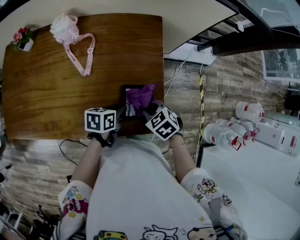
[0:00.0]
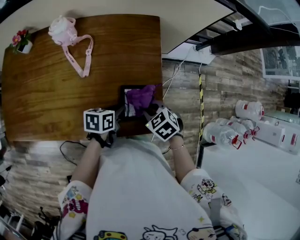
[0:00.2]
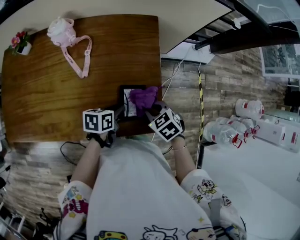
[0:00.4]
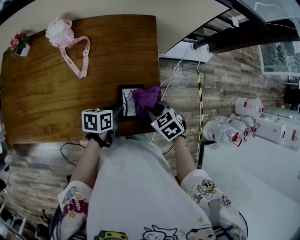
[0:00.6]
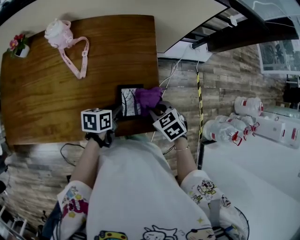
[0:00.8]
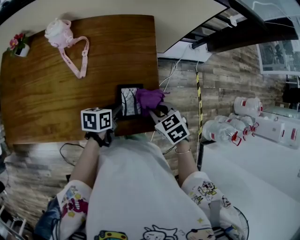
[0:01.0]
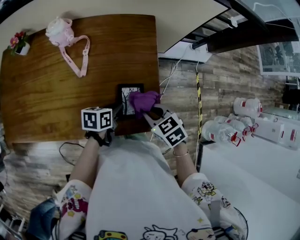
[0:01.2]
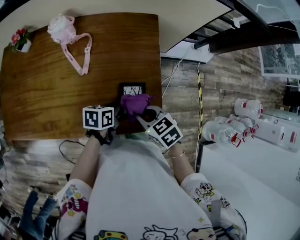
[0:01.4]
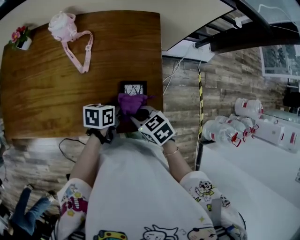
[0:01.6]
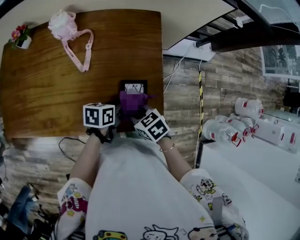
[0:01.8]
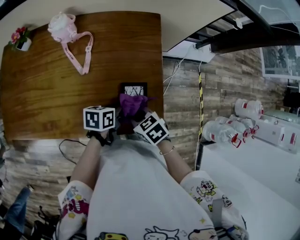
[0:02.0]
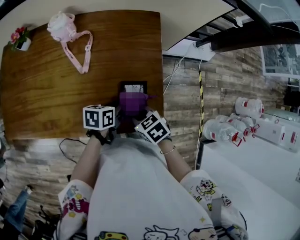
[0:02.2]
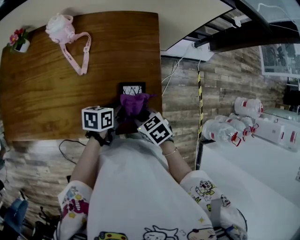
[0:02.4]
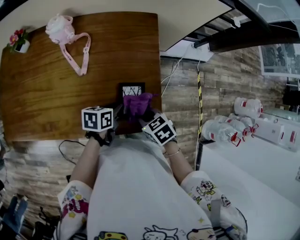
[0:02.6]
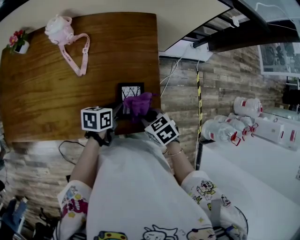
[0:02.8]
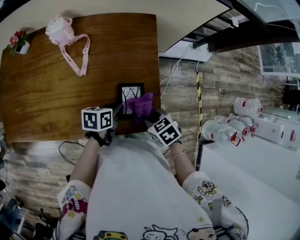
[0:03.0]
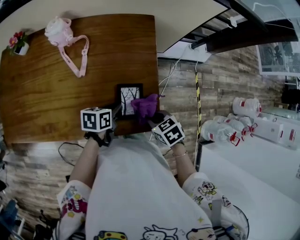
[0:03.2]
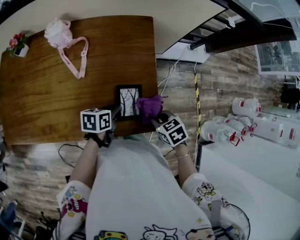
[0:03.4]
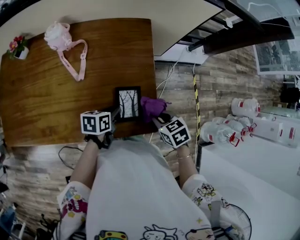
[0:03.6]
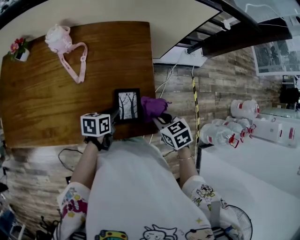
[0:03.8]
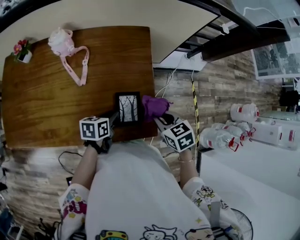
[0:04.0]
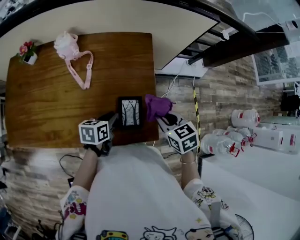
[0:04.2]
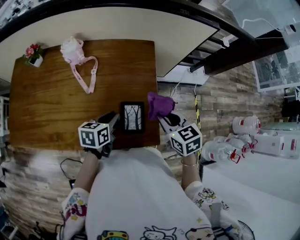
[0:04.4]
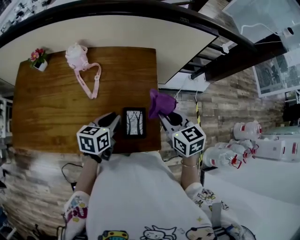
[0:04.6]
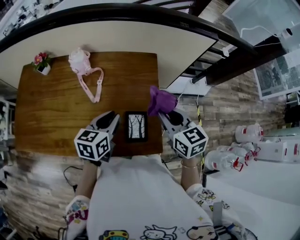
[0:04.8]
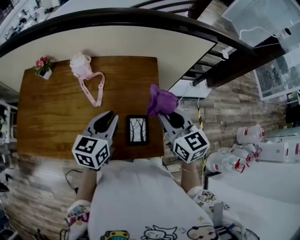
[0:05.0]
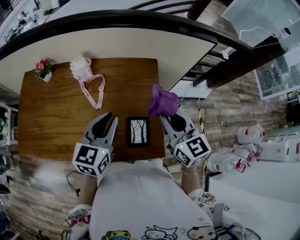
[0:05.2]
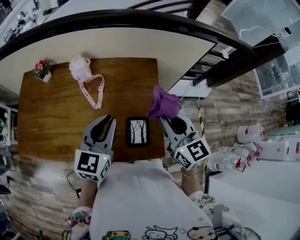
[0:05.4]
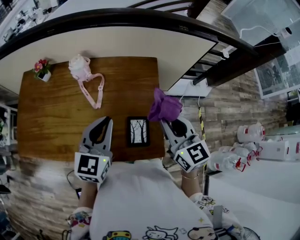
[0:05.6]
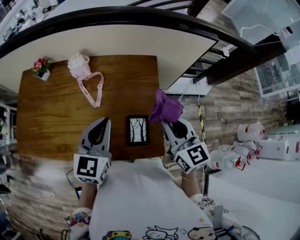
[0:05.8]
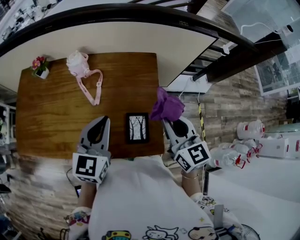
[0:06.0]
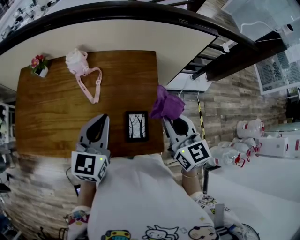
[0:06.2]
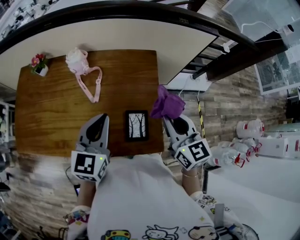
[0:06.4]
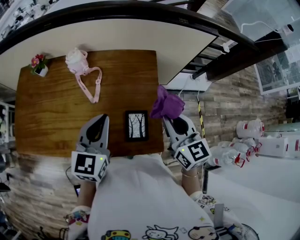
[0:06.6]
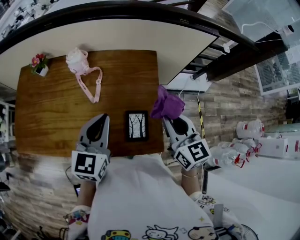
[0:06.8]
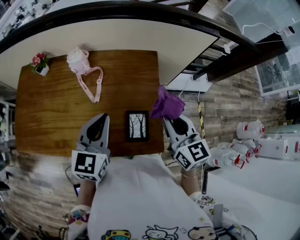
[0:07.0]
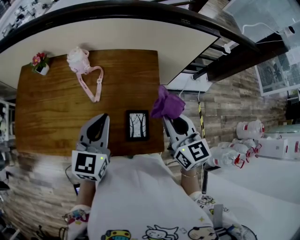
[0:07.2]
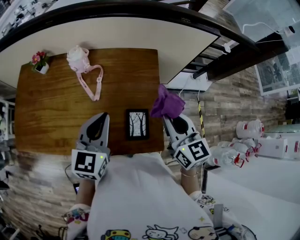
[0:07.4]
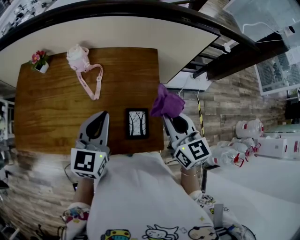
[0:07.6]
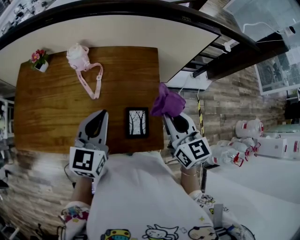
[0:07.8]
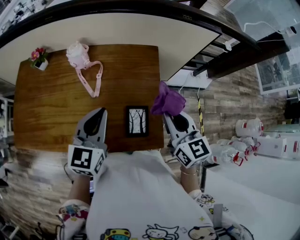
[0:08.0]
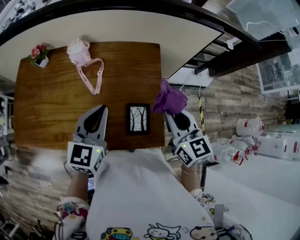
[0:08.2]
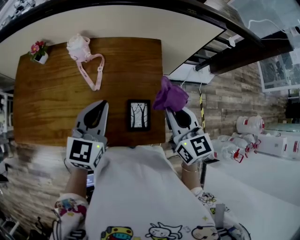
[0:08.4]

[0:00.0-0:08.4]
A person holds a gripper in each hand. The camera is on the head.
0:00.0 to 0:01.4: The right gripper changes place by some 5 cm.
0:01.4 to 0:02.8: The right gripper shifts by some 5 cm.
0:02.8 to 0:04.2: The right gripper is displaced upward, to the right and forward by some 15 cm.
0:04.2 to 0:05.6: Both grippers move upward, some 20 cm. The right gripper angles its fingers upward, by about 30 degrees; the left gripper rotates about 50 degrees.
0:05.6 to 0:07.0: There are only small adjustments of the grippers.
0:07.0 to 0:08.4: Both grippers stay put.

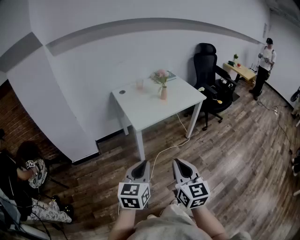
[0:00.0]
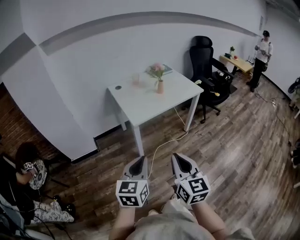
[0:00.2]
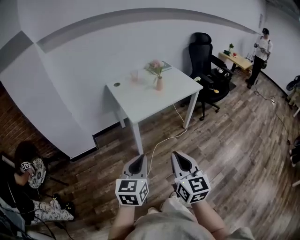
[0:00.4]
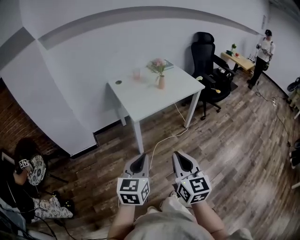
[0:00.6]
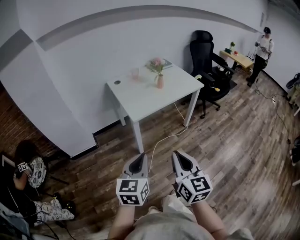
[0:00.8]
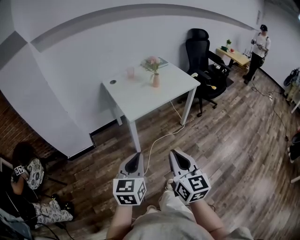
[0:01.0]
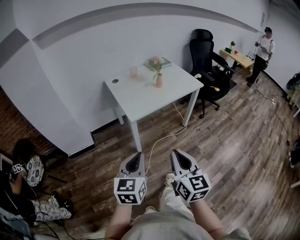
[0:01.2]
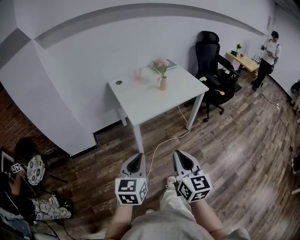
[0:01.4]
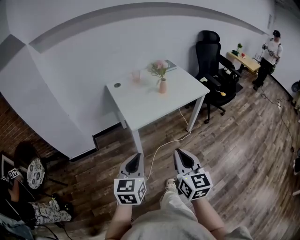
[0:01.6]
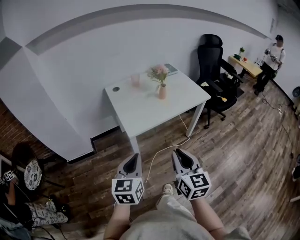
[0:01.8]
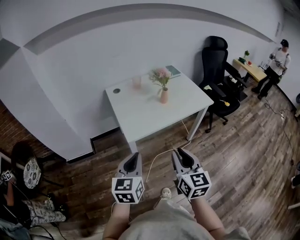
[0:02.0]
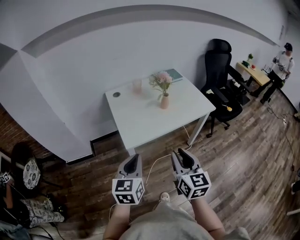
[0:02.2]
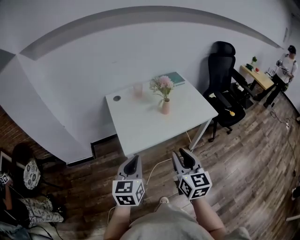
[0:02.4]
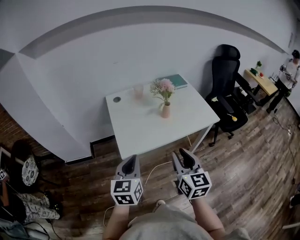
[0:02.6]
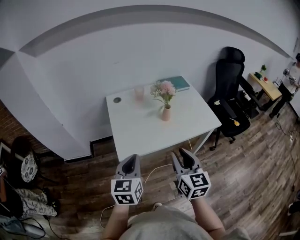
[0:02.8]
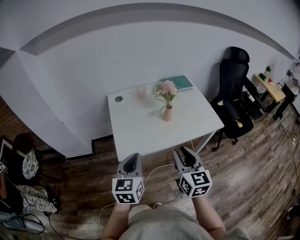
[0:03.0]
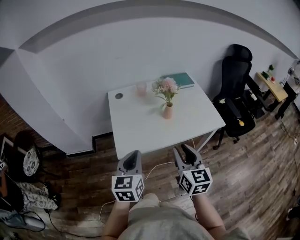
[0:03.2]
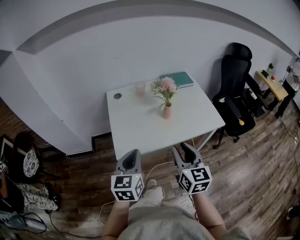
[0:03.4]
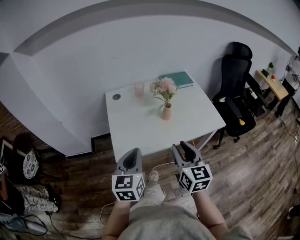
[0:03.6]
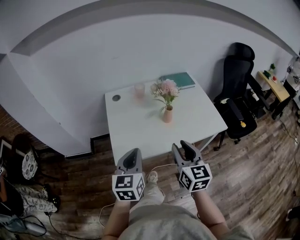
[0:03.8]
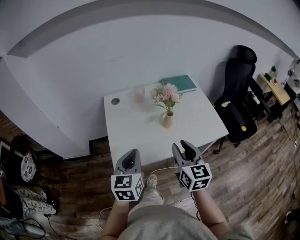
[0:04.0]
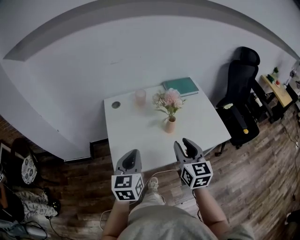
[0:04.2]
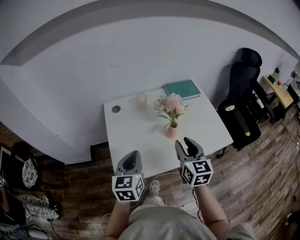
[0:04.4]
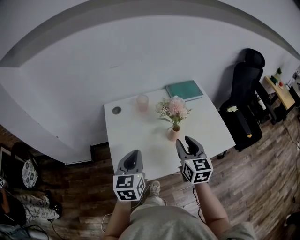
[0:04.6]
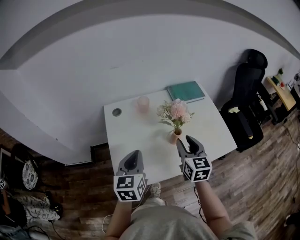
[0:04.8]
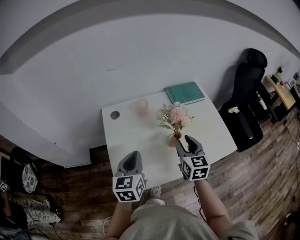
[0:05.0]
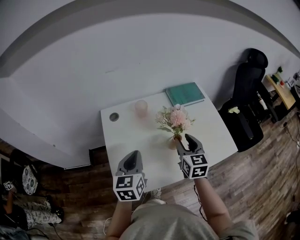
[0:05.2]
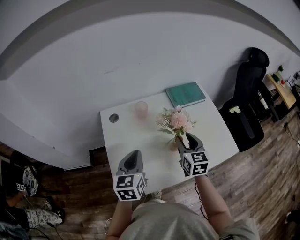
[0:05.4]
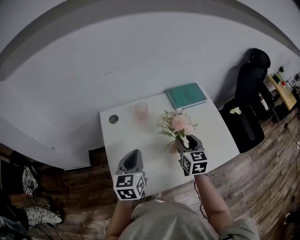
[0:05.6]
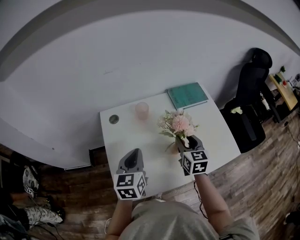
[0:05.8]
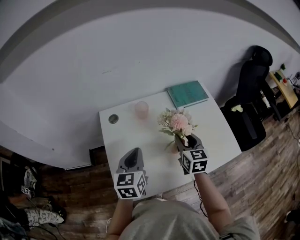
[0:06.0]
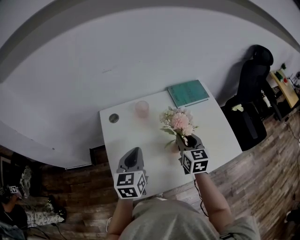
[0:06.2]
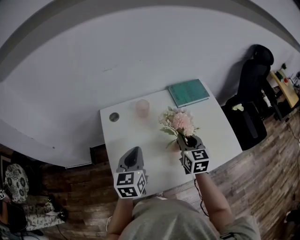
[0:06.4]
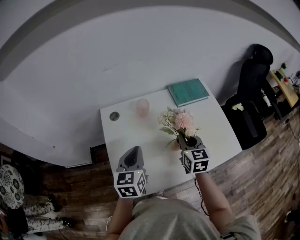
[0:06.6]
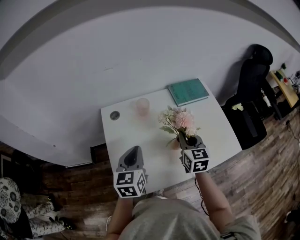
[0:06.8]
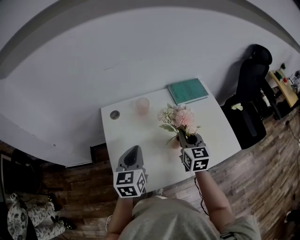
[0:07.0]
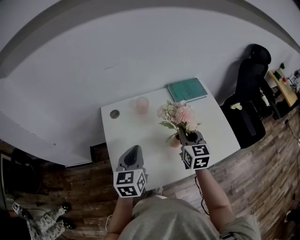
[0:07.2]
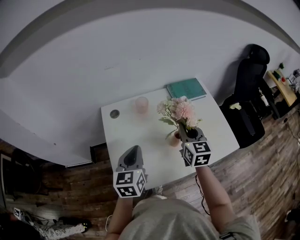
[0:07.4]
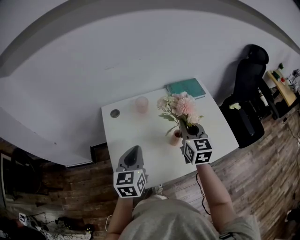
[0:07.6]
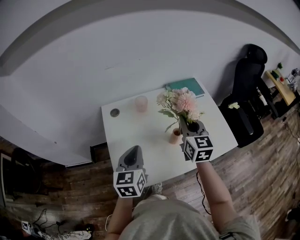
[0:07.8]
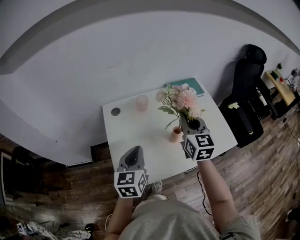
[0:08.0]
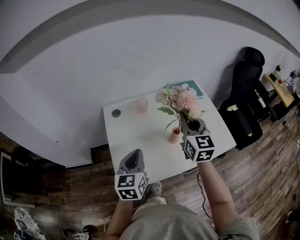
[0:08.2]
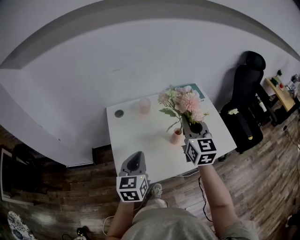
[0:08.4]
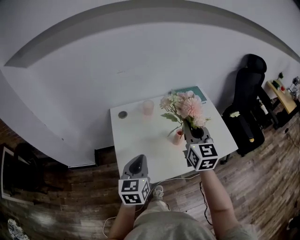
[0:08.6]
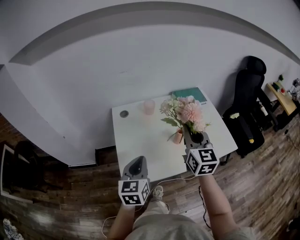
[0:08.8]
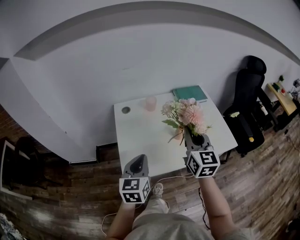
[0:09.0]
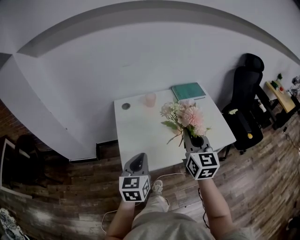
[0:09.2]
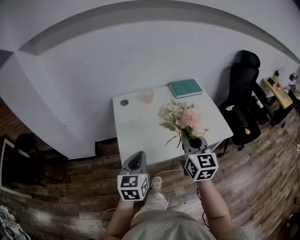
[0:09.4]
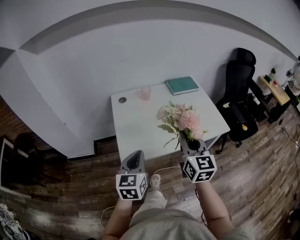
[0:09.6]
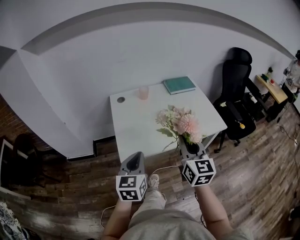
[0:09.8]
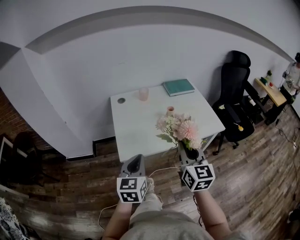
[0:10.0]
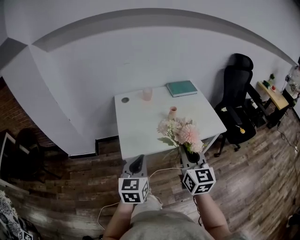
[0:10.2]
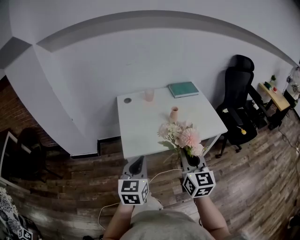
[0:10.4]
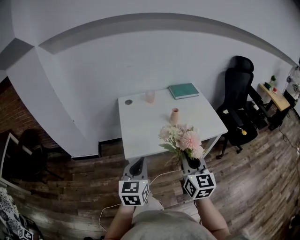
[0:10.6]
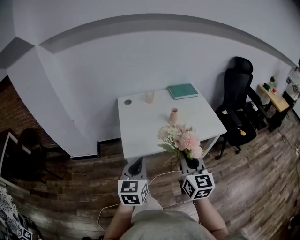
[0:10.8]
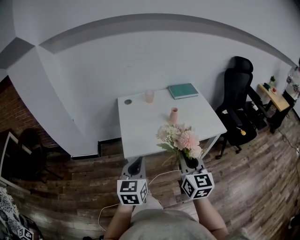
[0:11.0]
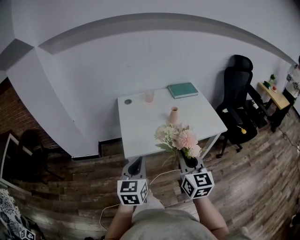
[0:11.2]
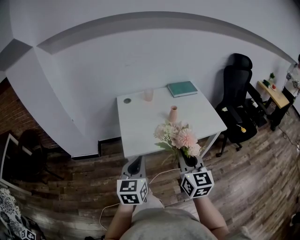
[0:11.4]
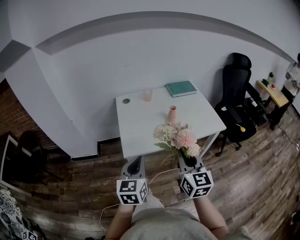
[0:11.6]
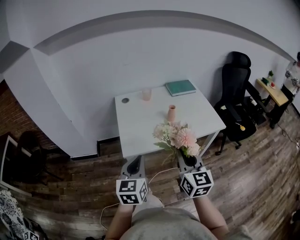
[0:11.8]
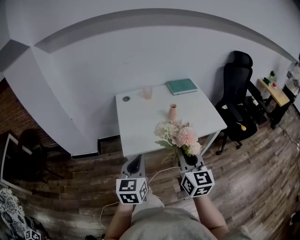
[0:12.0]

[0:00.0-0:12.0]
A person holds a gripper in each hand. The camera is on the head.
0:00.0 to 0:01.6: The two grippers go approximately 10 cm forward.
0:01.6 to 0:03.0: The grippers both shift forward and to the right by roughly 30 cm. The right gripper opens its fingers.
0:03.0 to 0:04.4: The two grippers go about 20 cm forward.
0:04.4 to 0:06.0: The right gripper heads forward and downward, covering about 20 cm, while the left gripper goes roughly 15 cm forward.
0:06.0 to 0:07.6: The left gripper ends up roughly 5 cm from where it was; the right gripper travels upward by approximately 10 cm, and closes its fingers.
0:07.6 to 0:09.0: The right gripper is displaced backward and upward by about 15 cm. Meanwhile the left gripper goes some 15 cm backward.
0:09.0 to 0:10.4: The grippers both shift backward by about 20 cm.
0:10.4 to 0:12.0: The two grippers keep their place.

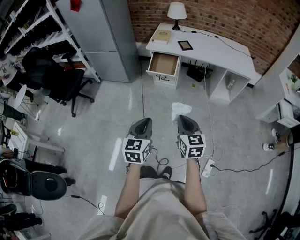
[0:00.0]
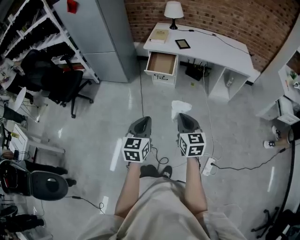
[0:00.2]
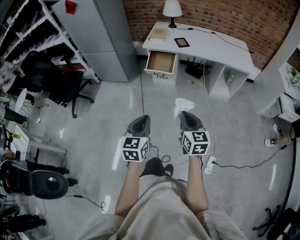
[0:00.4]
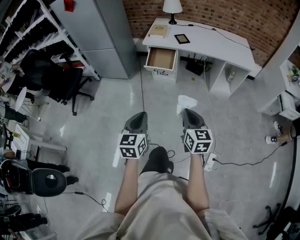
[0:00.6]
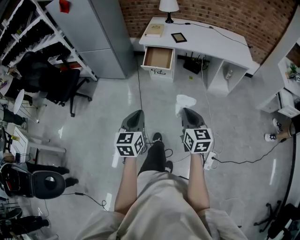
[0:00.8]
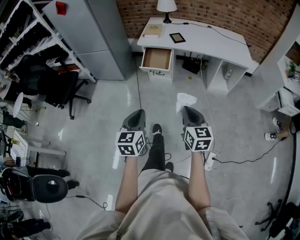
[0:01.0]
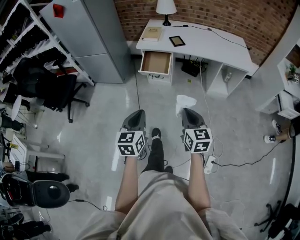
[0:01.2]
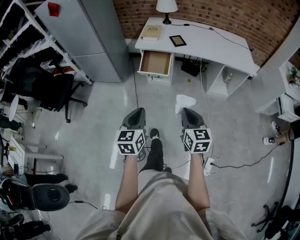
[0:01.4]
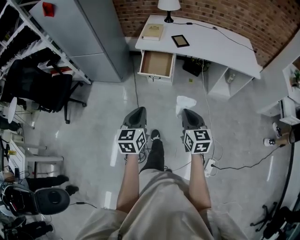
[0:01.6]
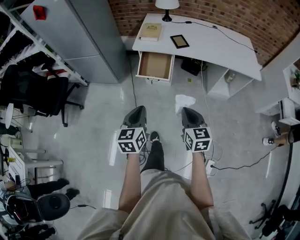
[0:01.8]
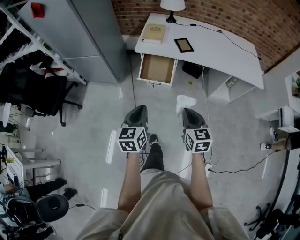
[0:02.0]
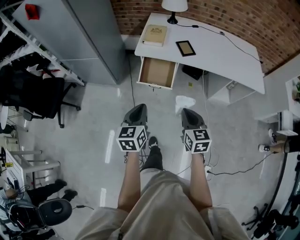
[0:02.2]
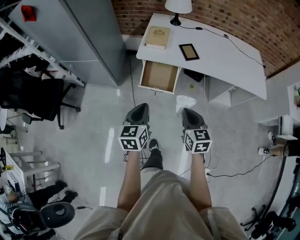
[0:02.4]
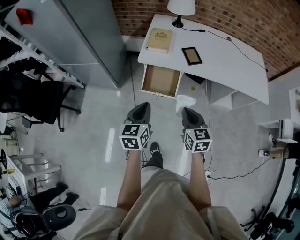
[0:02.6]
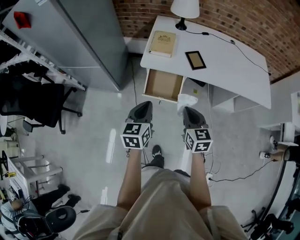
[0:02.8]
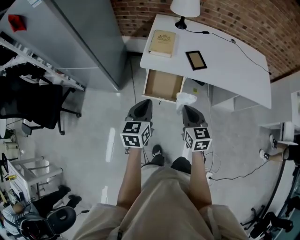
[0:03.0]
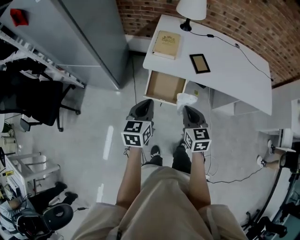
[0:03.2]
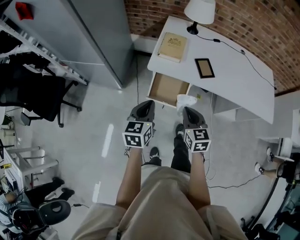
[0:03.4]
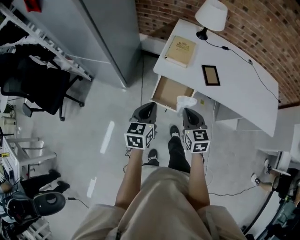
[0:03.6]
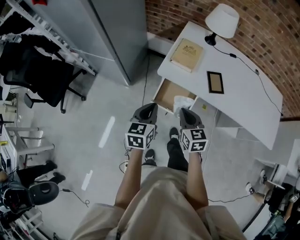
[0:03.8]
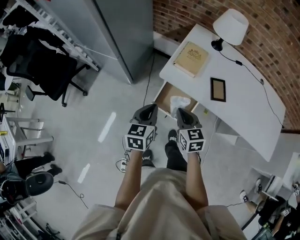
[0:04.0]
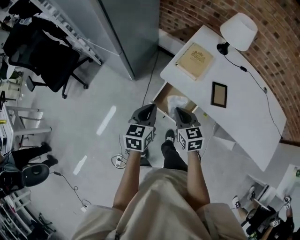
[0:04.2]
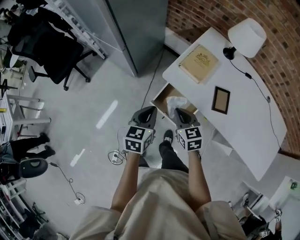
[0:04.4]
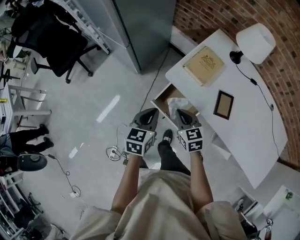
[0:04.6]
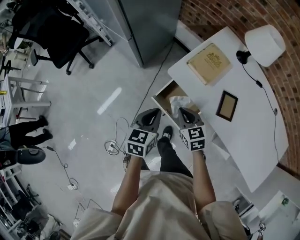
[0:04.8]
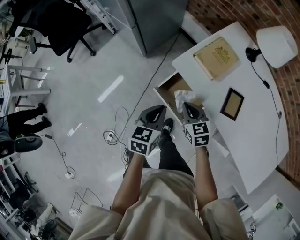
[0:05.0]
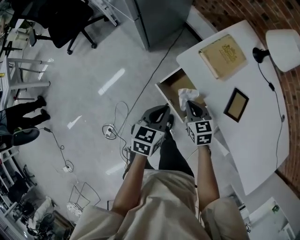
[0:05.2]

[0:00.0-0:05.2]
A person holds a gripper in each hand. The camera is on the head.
0:00.0 to 0:01.8: Both grippers travel together forward, about 25 cm.
0:01.8 to 0:03.4: The two grippers go approximately 35 cm forward.
0:03.4 to 0:05.2: The grippers both shift downward by some 15 cm. The left gripper turns by approximately 30 degrees; the right gripper rotates roughly 40 degrees.
